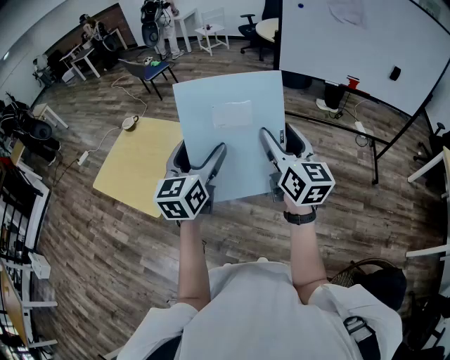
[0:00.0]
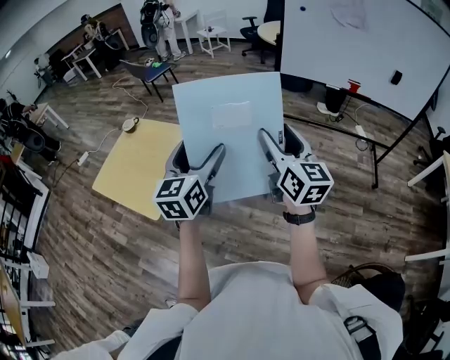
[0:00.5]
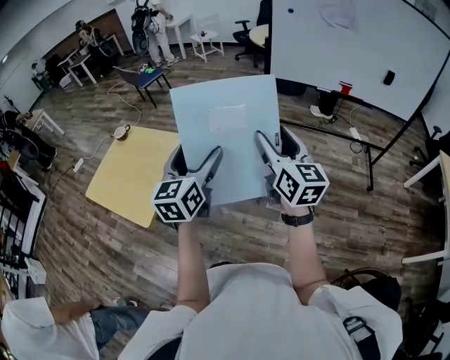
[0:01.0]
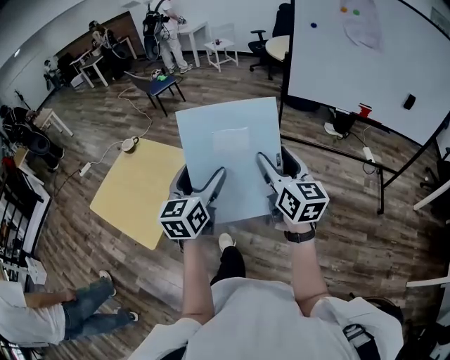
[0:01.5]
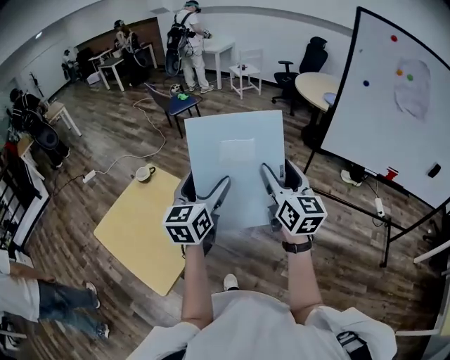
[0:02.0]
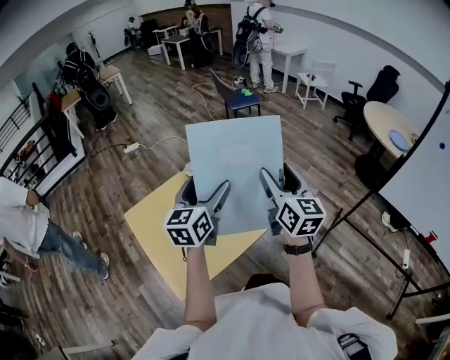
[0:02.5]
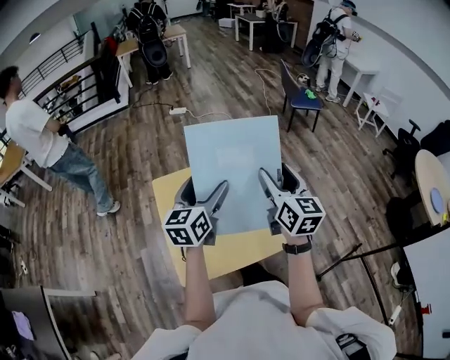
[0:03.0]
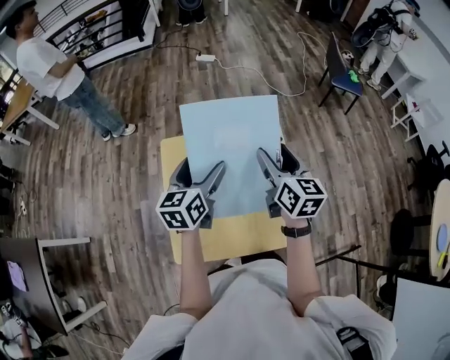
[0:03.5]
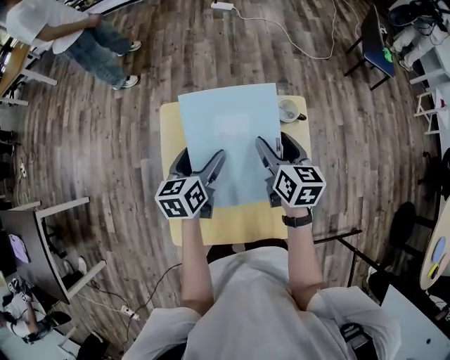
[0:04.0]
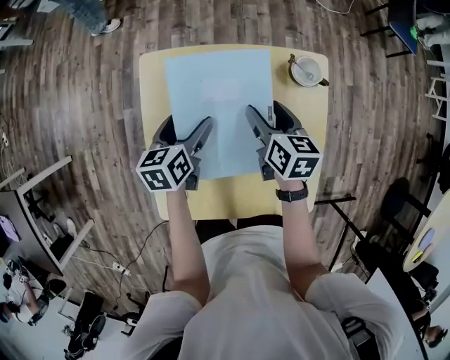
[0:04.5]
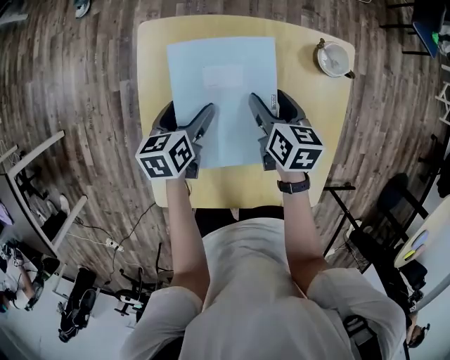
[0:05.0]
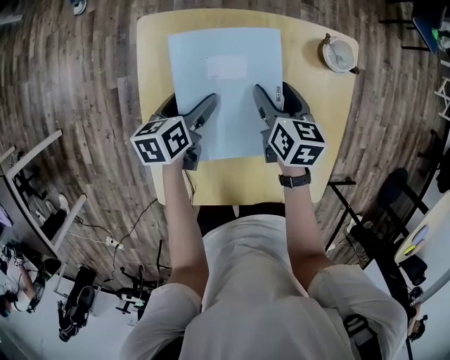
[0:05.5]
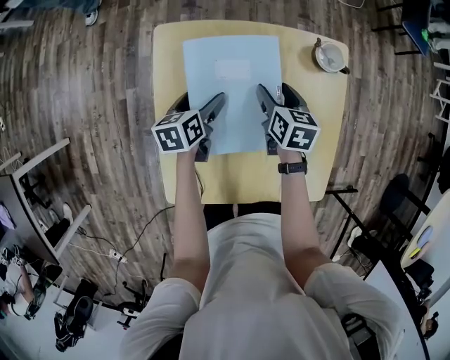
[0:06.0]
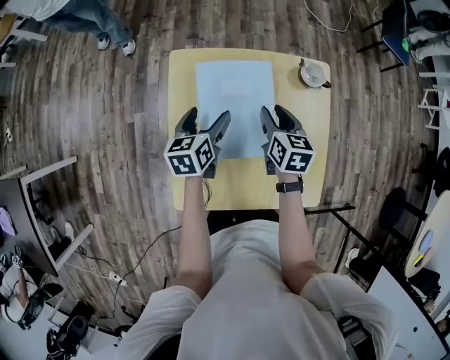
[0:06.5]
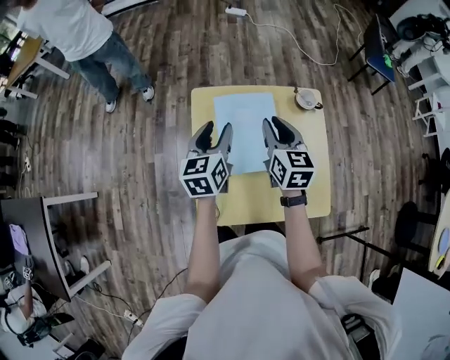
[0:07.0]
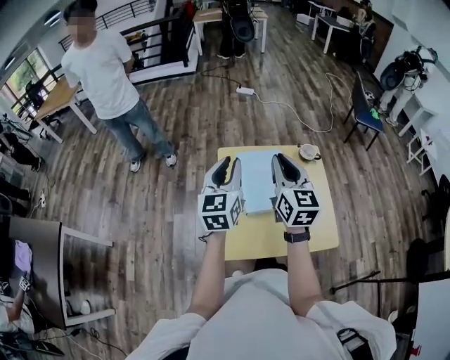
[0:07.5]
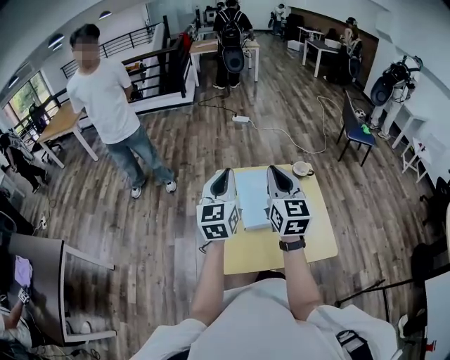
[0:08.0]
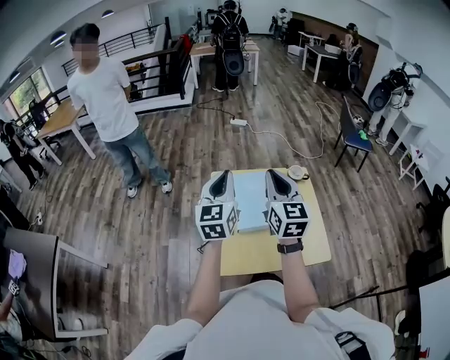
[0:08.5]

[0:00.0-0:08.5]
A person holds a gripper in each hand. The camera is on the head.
0.0 to 2.0 s: The grippers both shift forward by roughly 30 cm.
2.0 to 4.0 s: Both grippers are carried some 60 cm. The left gripper rotates about 70 degrees, while the right gripper points its fingers about 30 degrees further downward.
4.0 to 6.5 s: The left gripper is displaced downward by some 10 cm. Meanwhile the right gripper moves downward and to the left, roughly 15 cm, and closes up.
6.5 to 8.5 s: The left gripper moves upward, approximately 35 cm, tips its fingers upward by about 30 degrees, and closes up, while the right gripper is displaced upward and backward by roughly 40 cm, angles its fingers upward, by about 40 degrees, and closes.

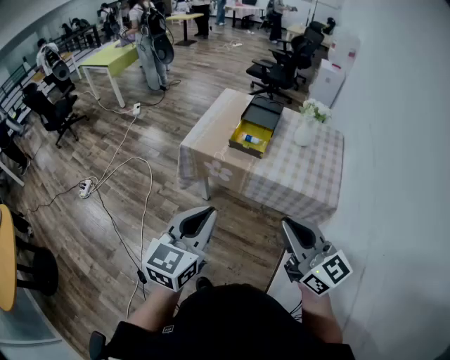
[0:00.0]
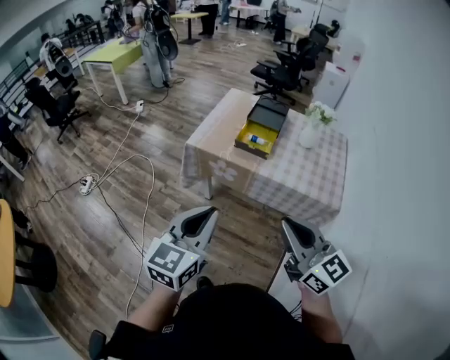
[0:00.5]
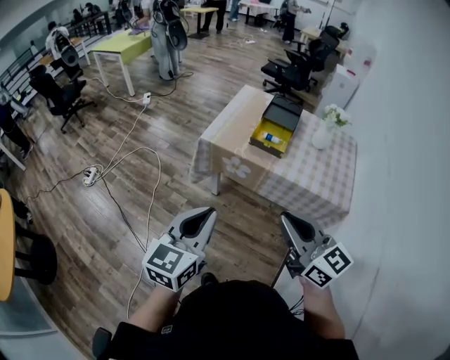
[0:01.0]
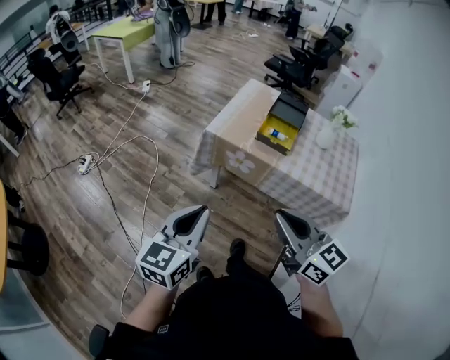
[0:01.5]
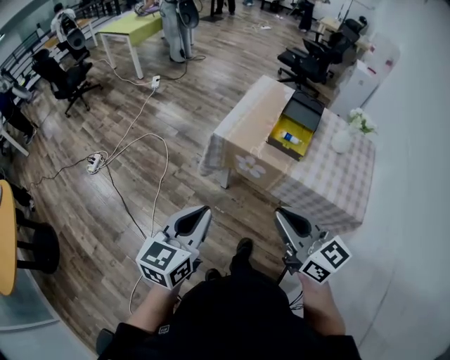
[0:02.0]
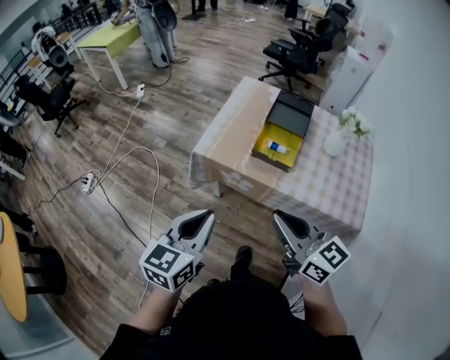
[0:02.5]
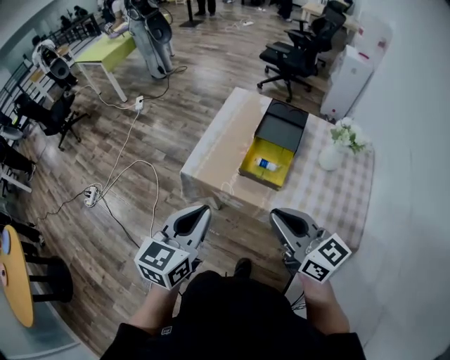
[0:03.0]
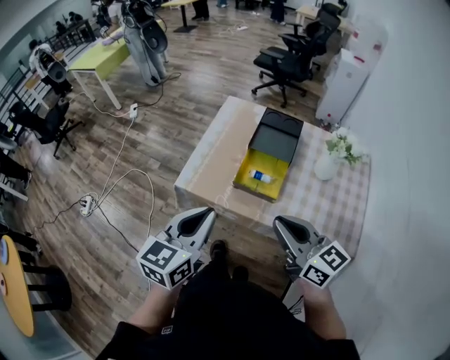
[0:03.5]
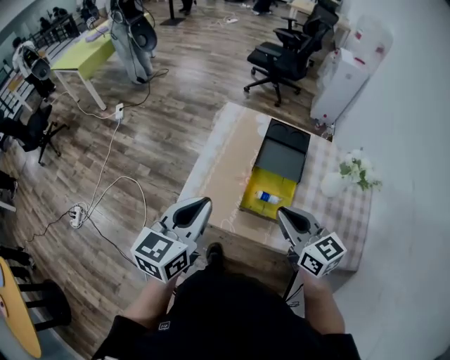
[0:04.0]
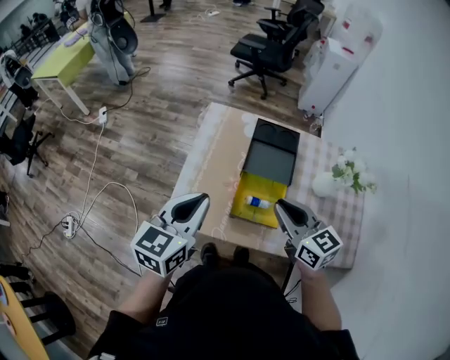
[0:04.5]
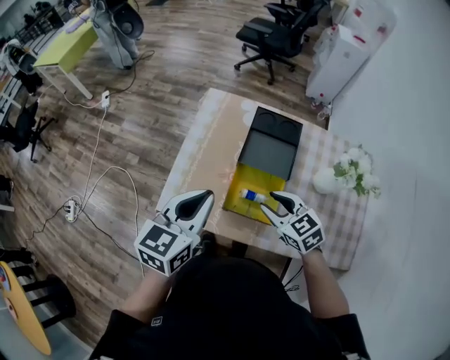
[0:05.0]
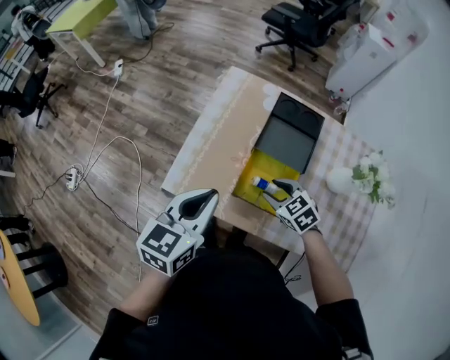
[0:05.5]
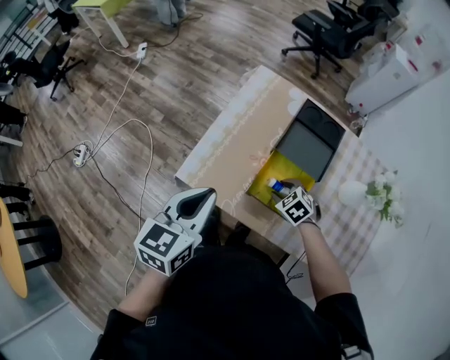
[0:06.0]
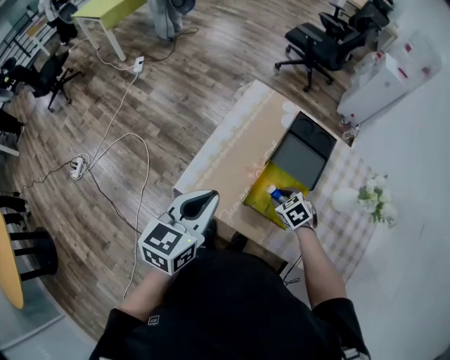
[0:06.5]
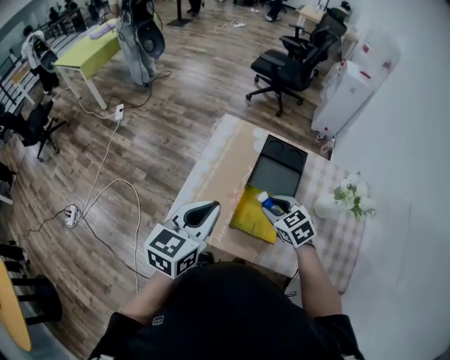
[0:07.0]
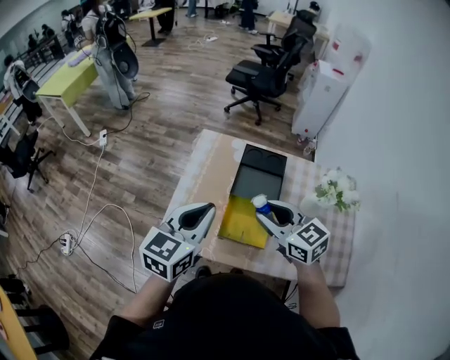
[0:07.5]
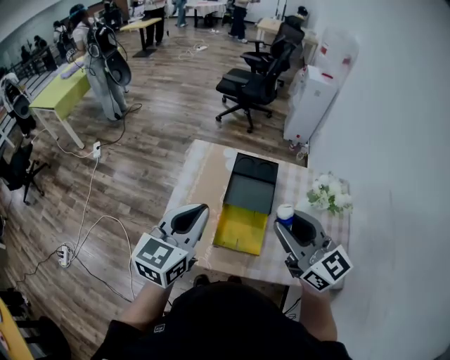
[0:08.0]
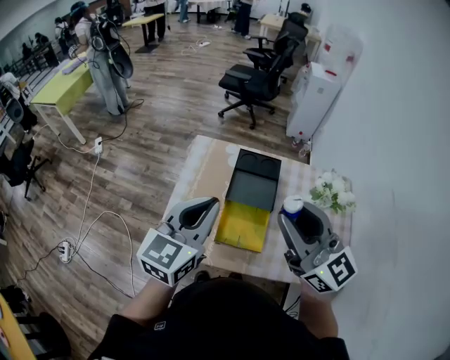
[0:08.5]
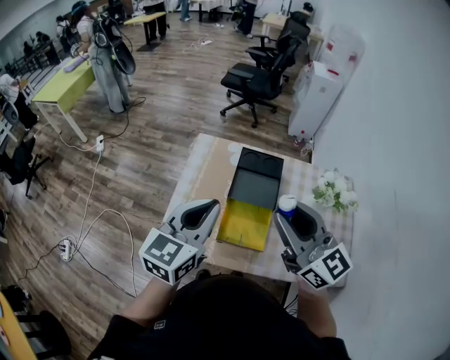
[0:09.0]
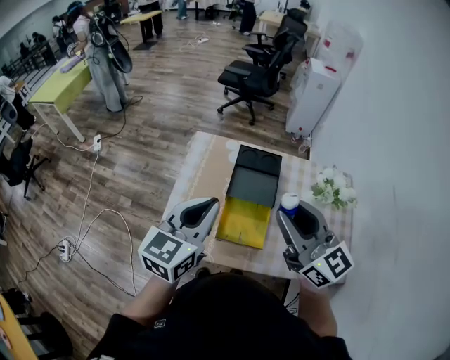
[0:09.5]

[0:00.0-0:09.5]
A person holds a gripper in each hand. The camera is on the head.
0.0 to 2.0 s: The grippers both shift to the left and forward by roughly 20 cm.
2.0 to 4.0 s: The left gripper heads forward, covering roughly 40 cm; the right gripper is displaced forward and to the right by roughly 40 cm.
4.0 to 5.5 s: The right gripper is displaced downward and forward by roughly 20 cm, angles its fingers downward, by approximately 40 degrees, and opens its fingers. Meanwhile the left gripper travels downward and to the right by approximately 10 cm.
5.5 to 7.5 s: The left gripper travels upward by about 10 cm. Meanwhile the right gripper travels upward by some 20 cm, and tips its fingers upward by approximately 30 degrees.
7.5 to 9.5 s: The right gripper moves upward, about 15 cm, and turns by roughly 30 degrees.

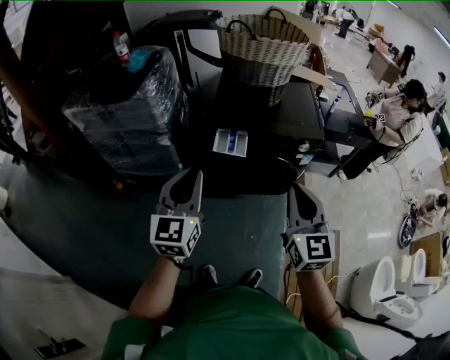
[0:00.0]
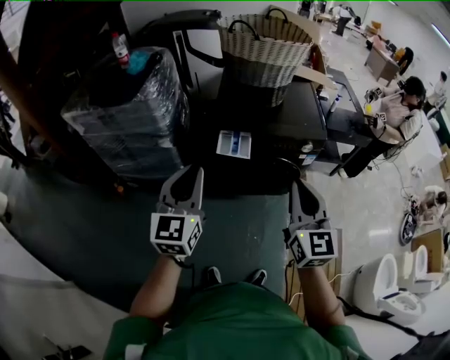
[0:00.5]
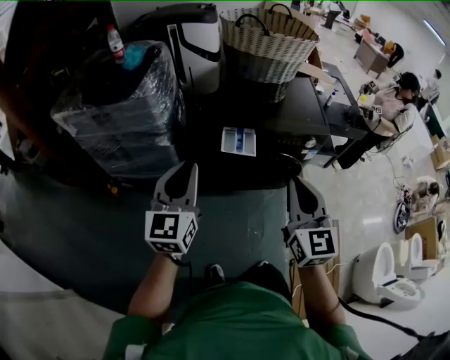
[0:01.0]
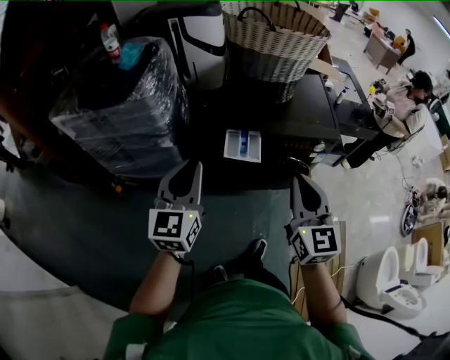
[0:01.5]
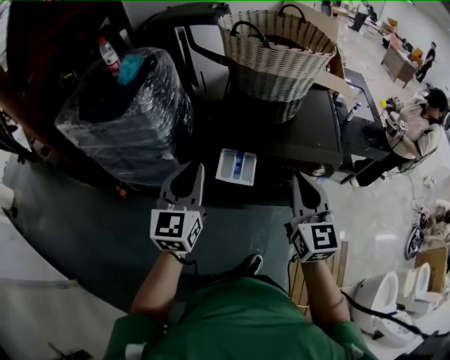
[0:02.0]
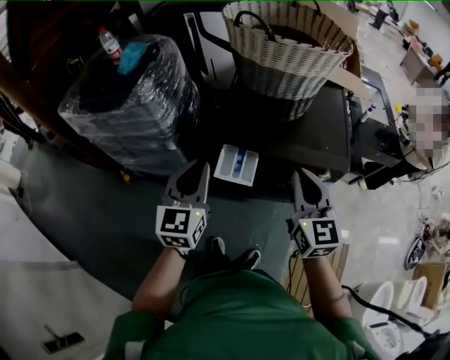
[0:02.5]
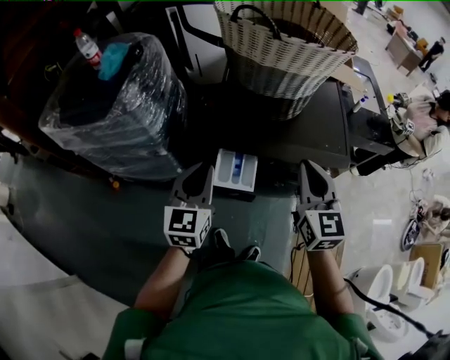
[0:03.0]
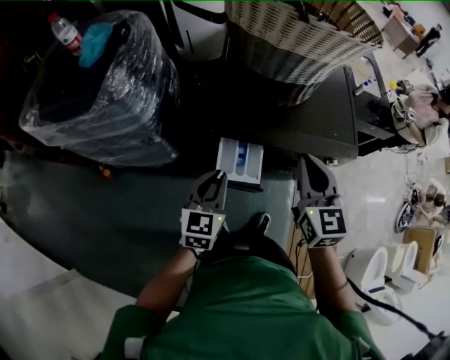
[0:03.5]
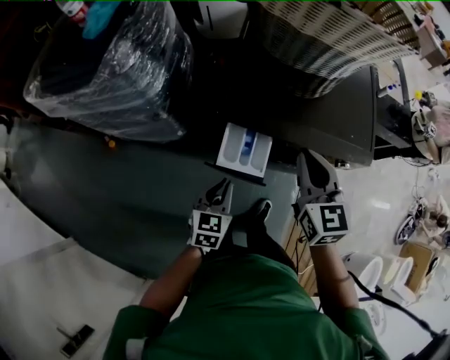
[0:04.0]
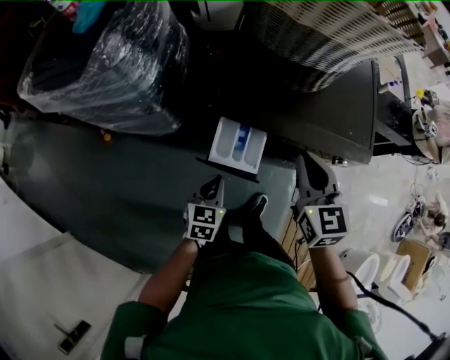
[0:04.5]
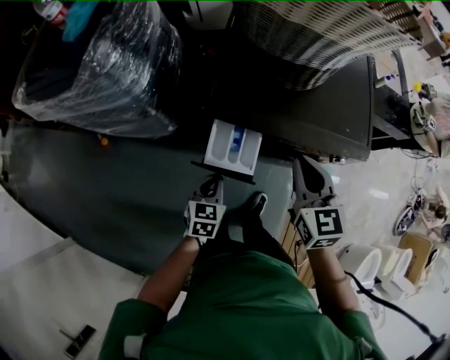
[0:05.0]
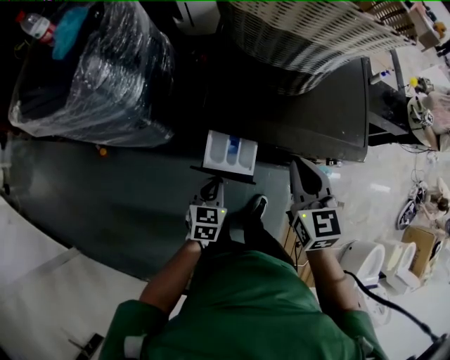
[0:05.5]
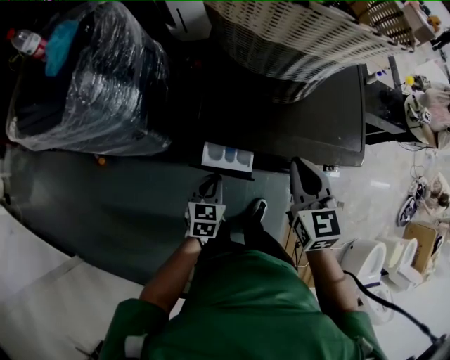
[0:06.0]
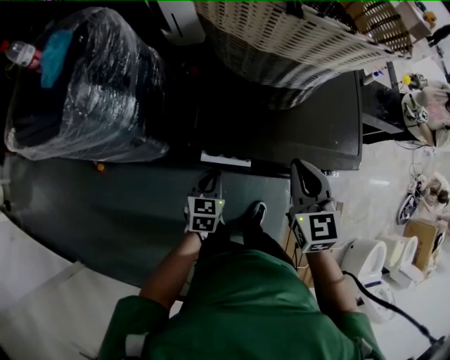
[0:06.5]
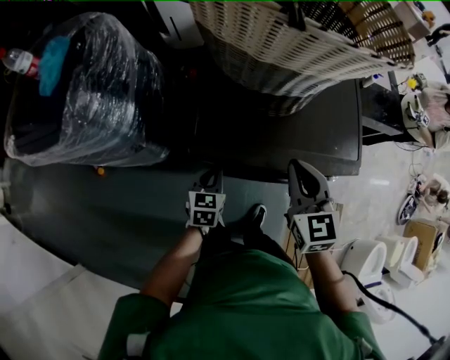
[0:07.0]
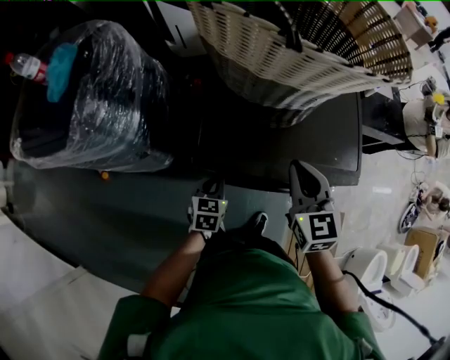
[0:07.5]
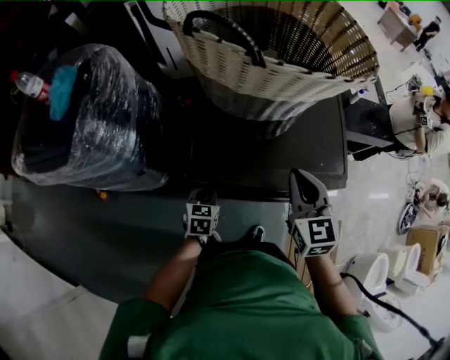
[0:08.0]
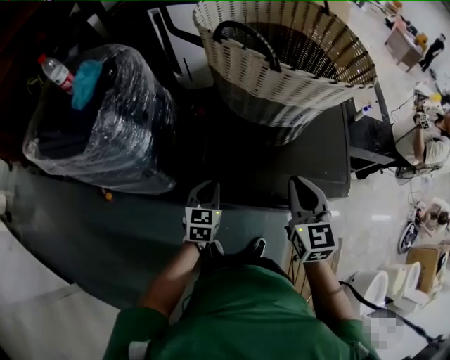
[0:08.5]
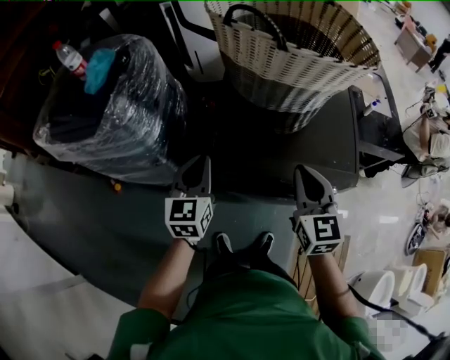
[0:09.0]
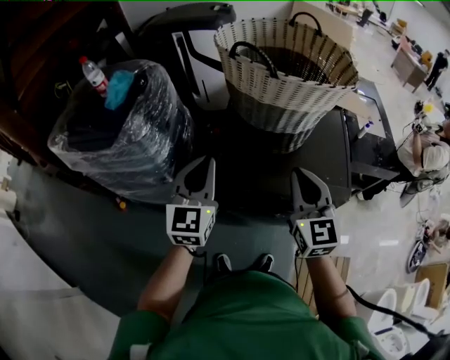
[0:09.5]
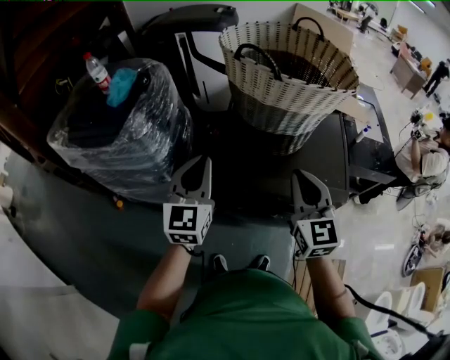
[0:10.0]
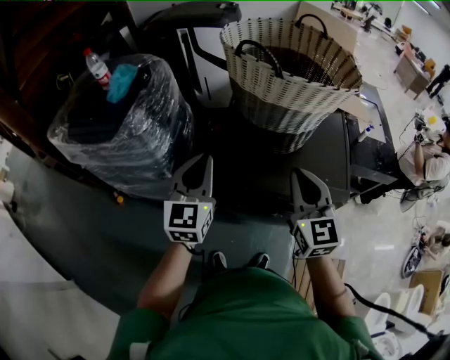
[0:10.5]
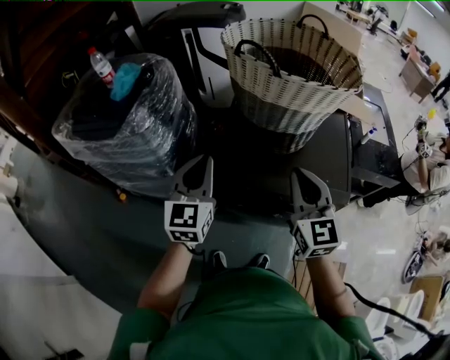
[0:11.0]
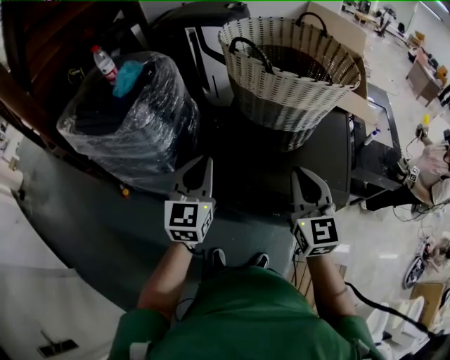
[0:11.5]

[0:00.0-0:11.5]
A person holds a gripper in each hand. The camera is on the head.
0.0 to 2.0 s: The two grippers go about 20 cm forward.
2.0 to 4.0 s: The left gripper shifts roughly 30 cm downward, and angles its fingers downward, by approximately 30 degrees. The right gripper travels forward and downward by some 20 cm.
4.0 to 6.0 s: The left gripper is displaced forward and downward by about 10 cm. The right gripper moves roughly 5 cm.
6.0 to 7.5 s: The two grippers go roughly 5 cm forward.
7.5 to 9.5 s: The right gripper is displaced upward and backward by roughly 15 cm. The left gripper travels upward by about 35 cm, and tilts its fingers about 40 degrees upward.
9.5 to 11.5 s: The grippers make only small movements.
